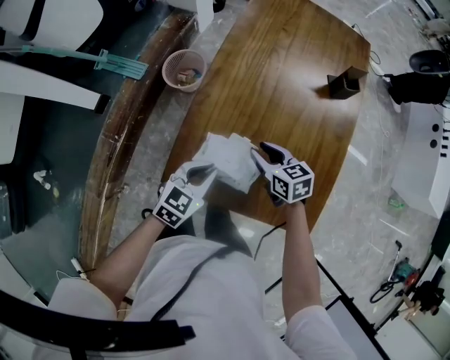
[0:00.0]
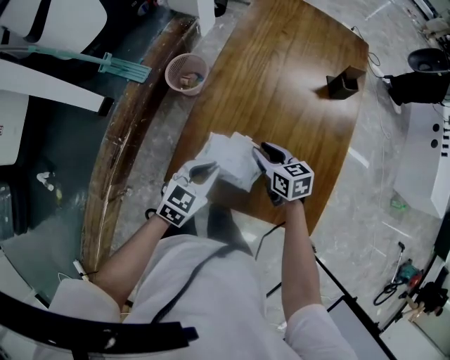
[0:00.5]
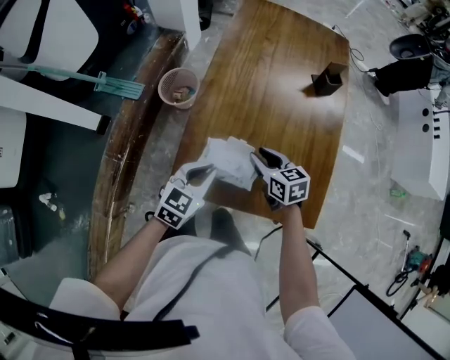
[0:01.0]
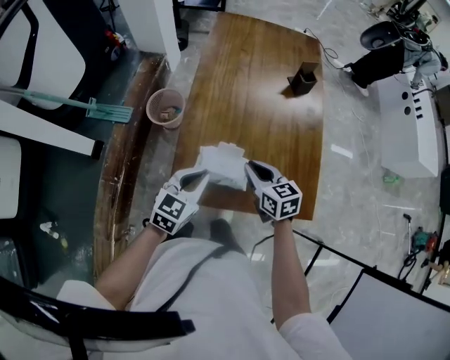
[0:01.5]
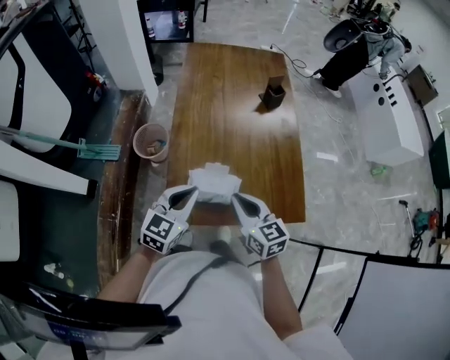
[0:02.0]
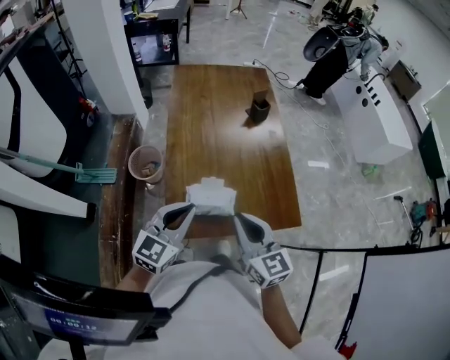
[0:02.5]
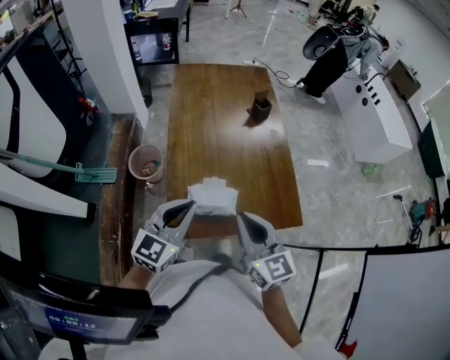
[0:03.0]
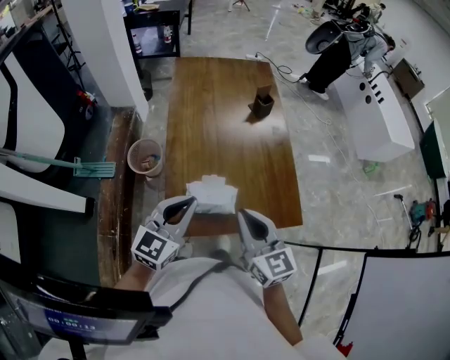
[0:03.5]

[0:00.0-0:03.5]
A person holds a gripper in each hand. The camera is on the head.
0:00.0 to 0:02.0: The right gripper is displaced upward and backward by about 20 cm, swivels some 30 degrees, and closes up. The left gripper shifts about 15 cm upward.
0:02.0 to 0:03.5: Both grippers move upward, about 10 cm.

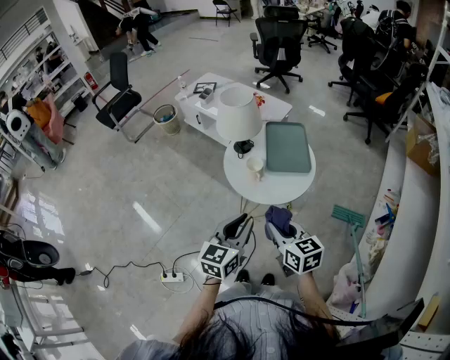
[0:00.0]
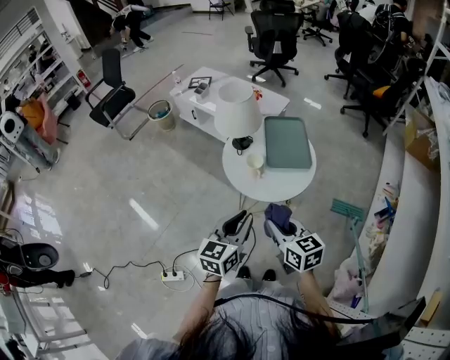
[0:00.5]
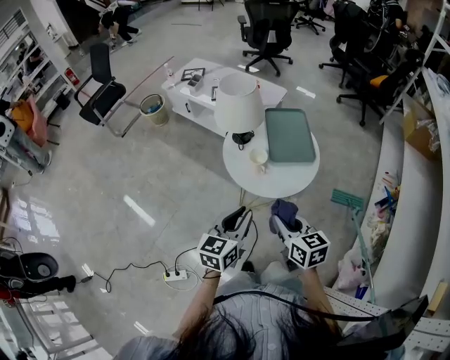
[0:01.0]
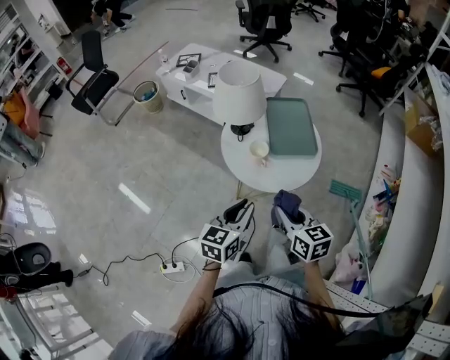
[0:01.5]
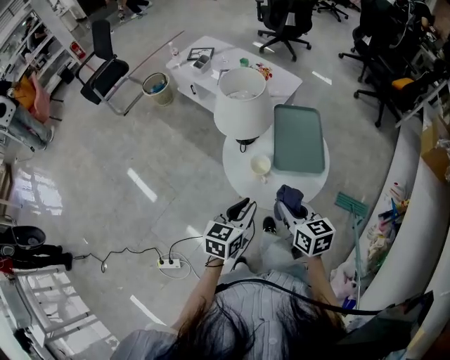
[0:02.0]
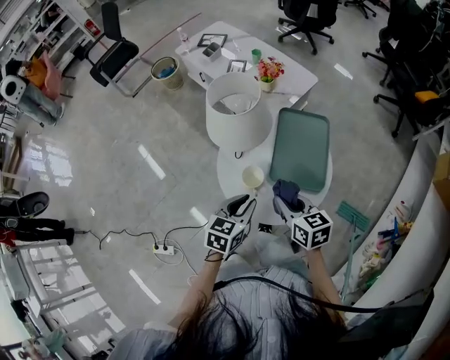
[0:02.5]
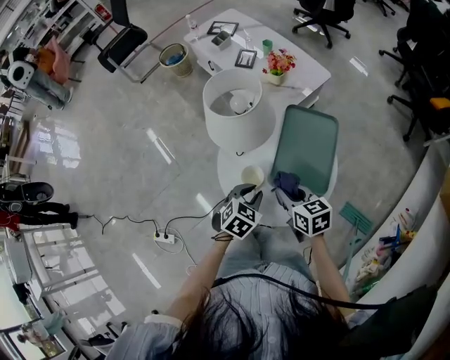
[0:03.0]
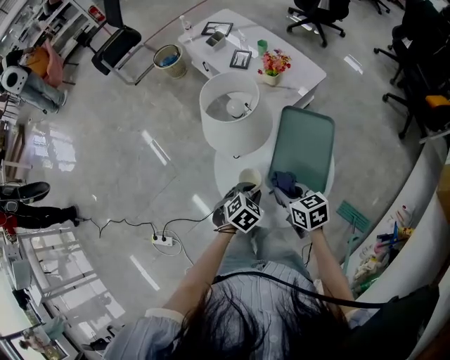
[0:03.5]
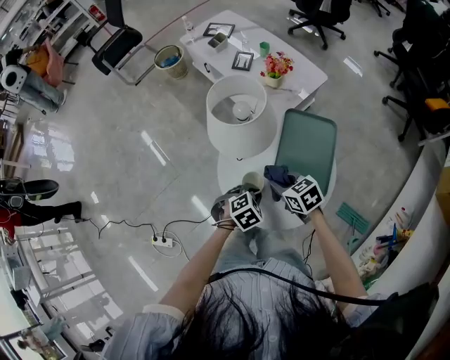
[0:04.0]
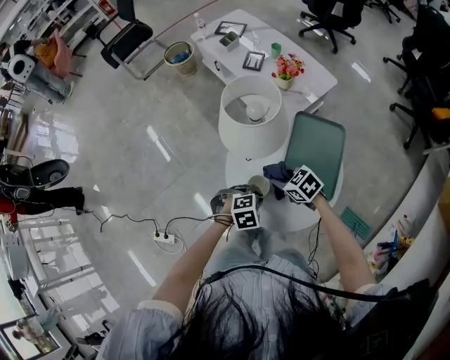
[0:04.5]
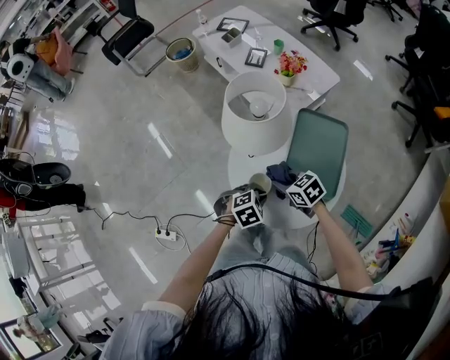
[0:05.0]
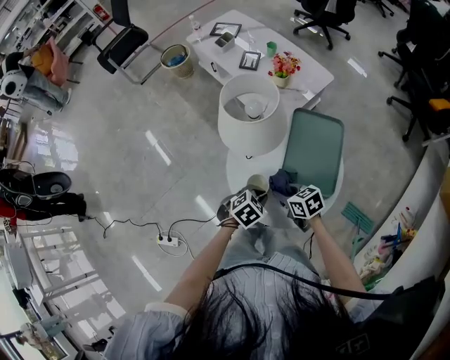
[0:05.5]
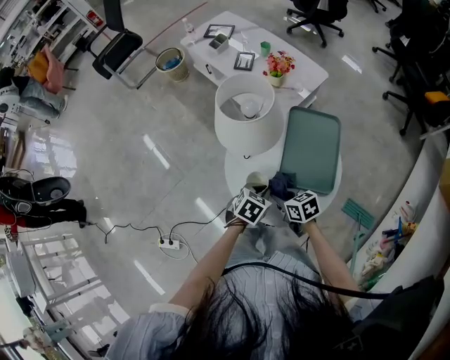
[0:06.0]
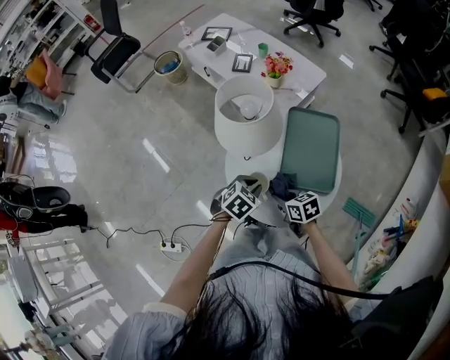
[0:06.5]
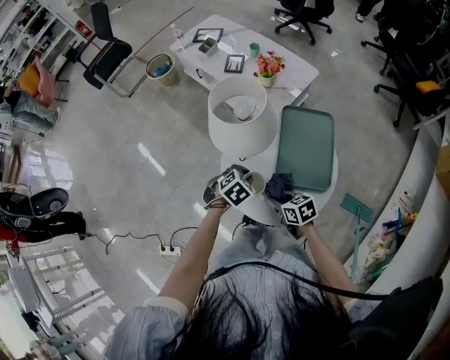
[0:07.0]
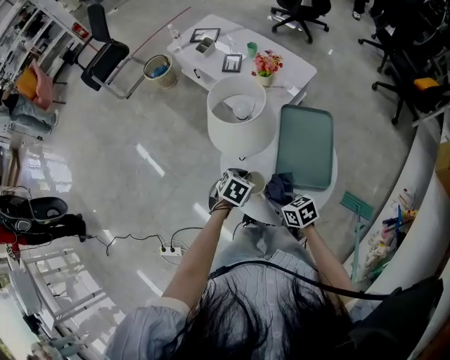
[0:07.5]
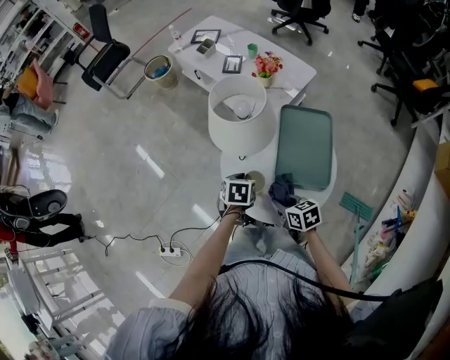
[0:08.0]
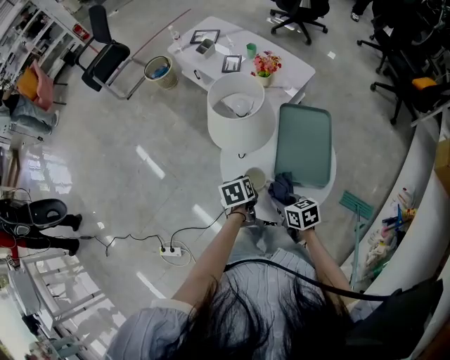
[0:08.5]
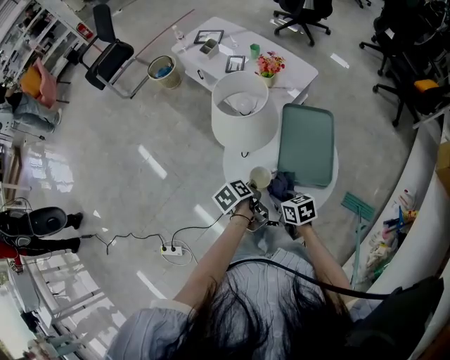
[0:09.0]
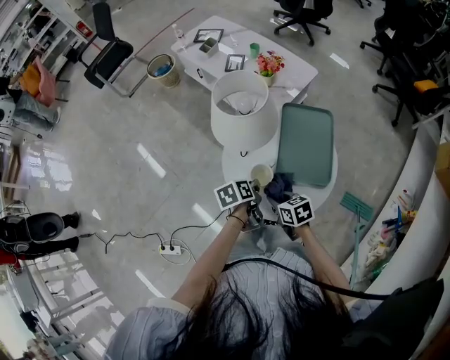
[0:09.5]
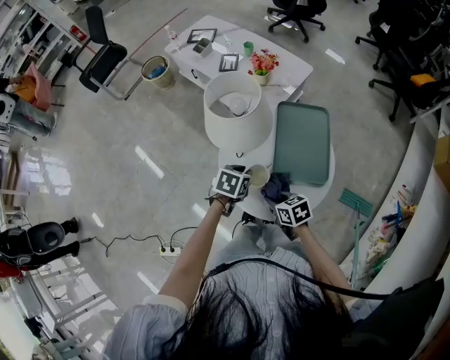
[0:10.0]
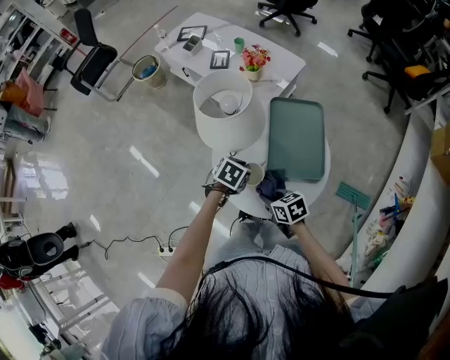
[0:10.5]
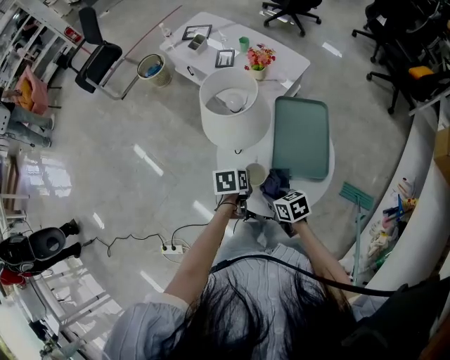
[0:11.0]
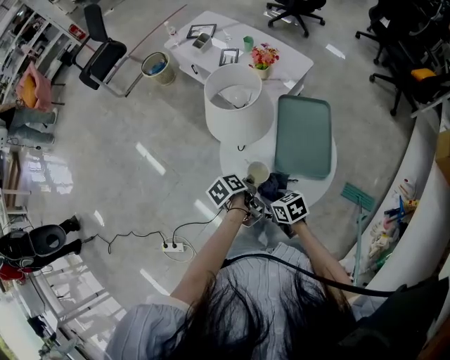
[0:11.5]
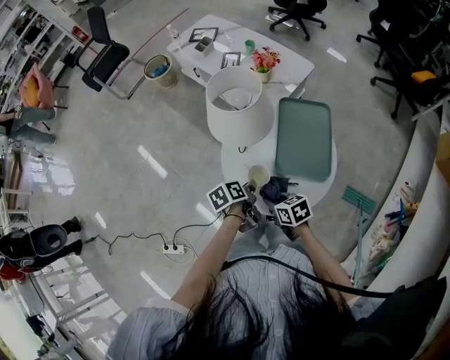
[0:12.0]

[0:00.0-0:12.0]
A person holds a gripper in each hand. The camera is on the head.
0:00.0 to 0:02.0: The right gripper heads forward, covering approximately 15 cm, while the left gripper shifts about 15 cm forward and downward.
0:02.0 to 0:04.0: The right gripper is displaced forward and downward by roughly 20 cm, and turns by about 40 degrees. The left gripper moves downward, forward and to the right, about 20 cm, and tilts its fingers some 40 degrees downward.
0:04.0 to 0:06.0: The left gripper swivels about 30 degrees; the right gripper ends up some 10 cm from where it was.
0:06.0 to 0:08.0: The left gripper travels to the left and forward by approximately 10 cm, and rotates roughly 20 degrees.
0:10.0 to 0:12.0: The left gripper goes some 5 cm backward, and rotates around the line of its fingers by approximately 60 degrees, counterclockwise from behind.

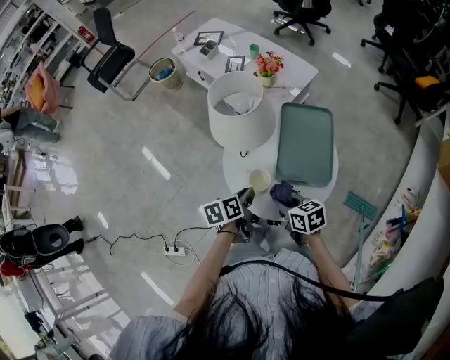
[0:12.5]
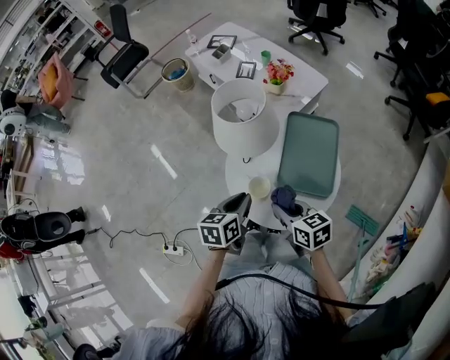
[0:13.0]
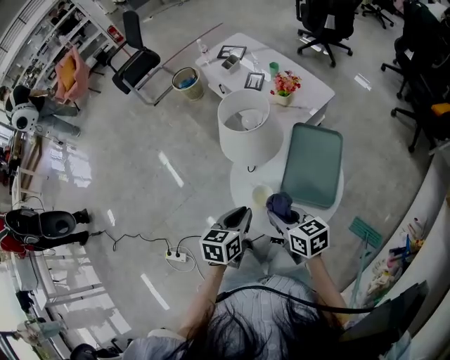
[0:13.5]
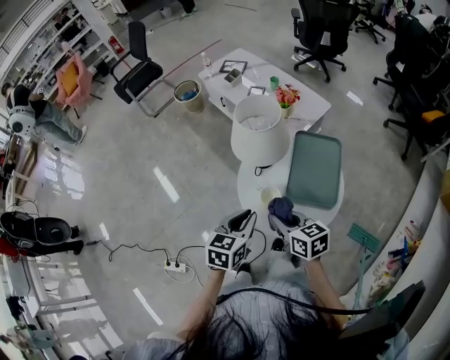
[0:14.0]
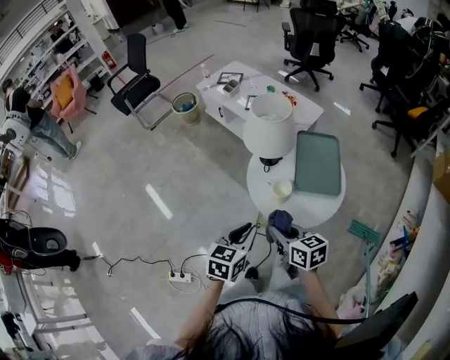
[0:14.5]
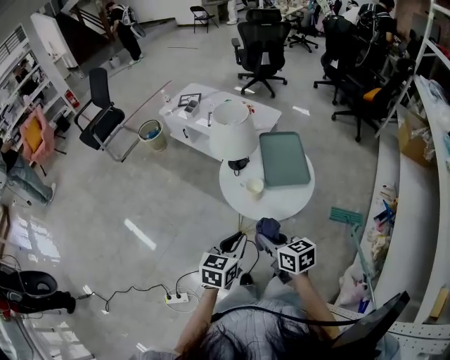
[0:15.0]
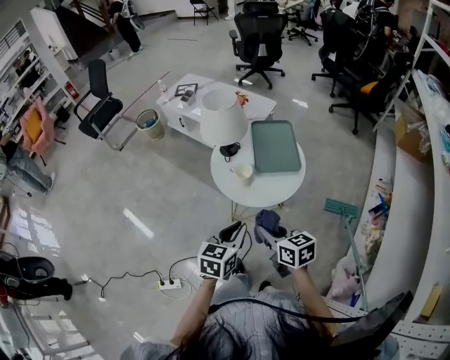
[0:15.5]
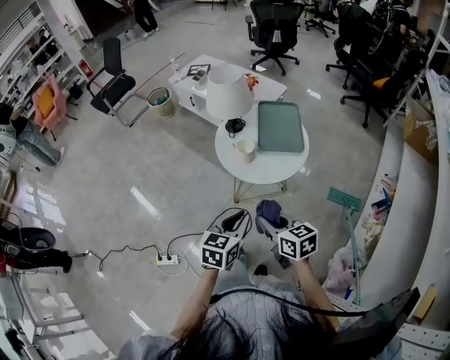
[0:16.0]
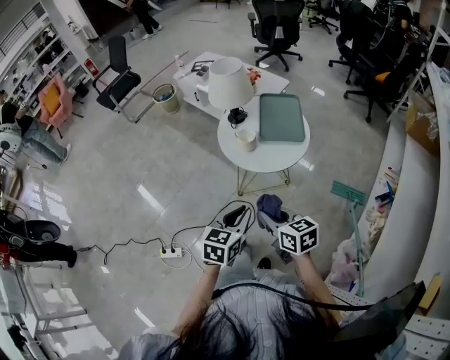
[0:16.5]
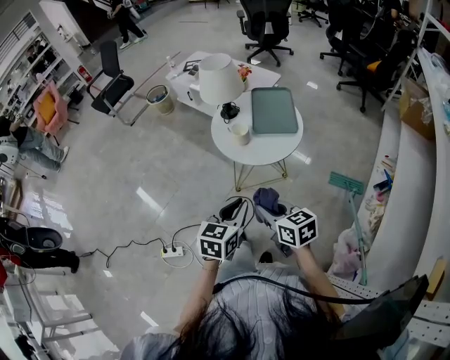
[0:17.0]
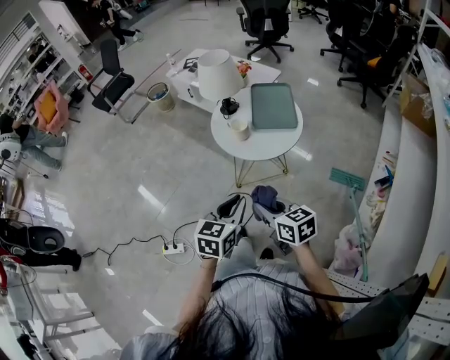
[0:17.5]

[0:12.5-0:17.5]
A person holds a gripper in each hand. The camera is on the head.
0:12.5 to 0:15.0: The two grippers go roughly 20 cm backward, upward and to the left. The left gripper rotates around the line of its fingers by roughly 50 degrees, clockwise from behind; the right gripper rotates about 20 degrees.
0:15.0 to 0:17.5: The right gripper goes approximately 15 cm backward, while the left gripper heads backward and to the right, covering approximately 15 cm.

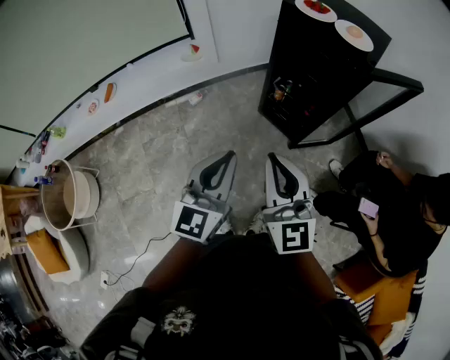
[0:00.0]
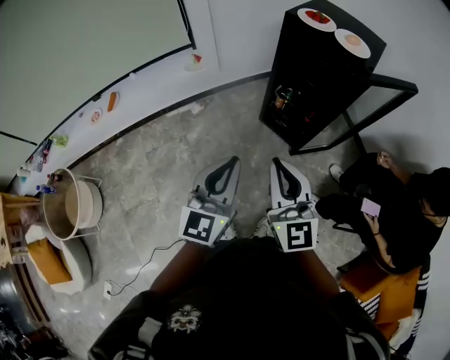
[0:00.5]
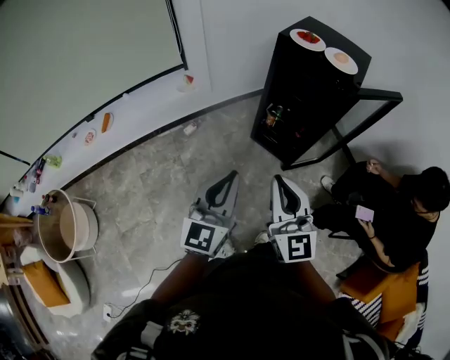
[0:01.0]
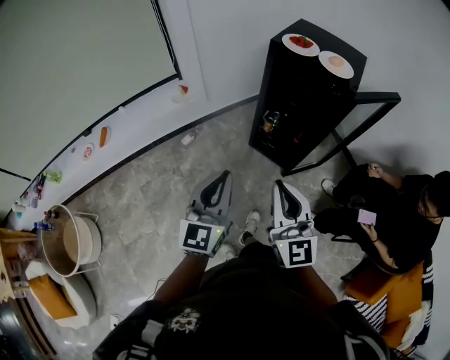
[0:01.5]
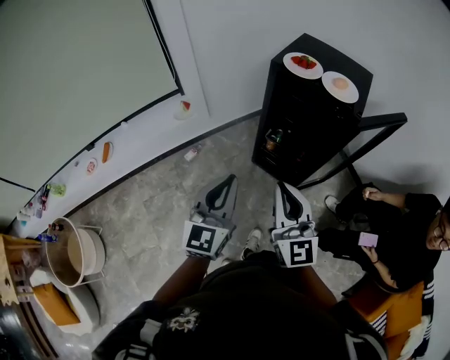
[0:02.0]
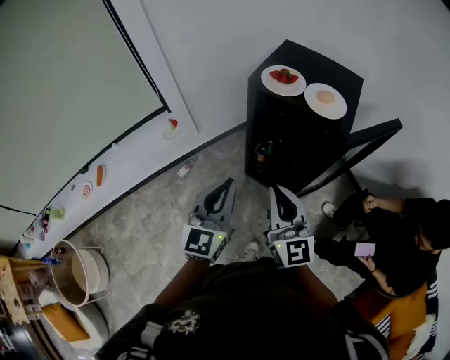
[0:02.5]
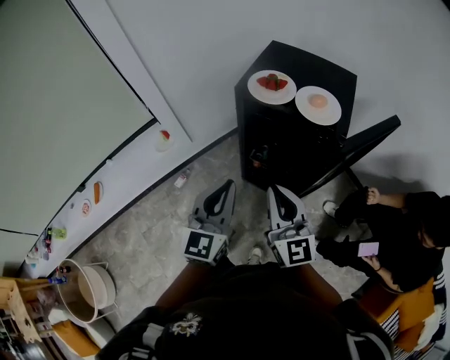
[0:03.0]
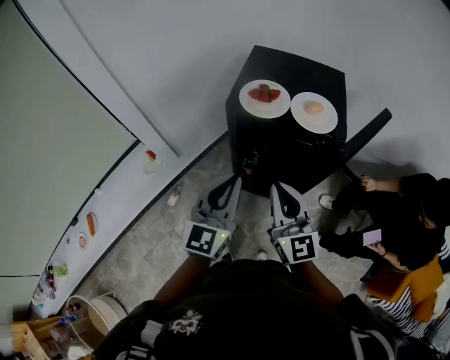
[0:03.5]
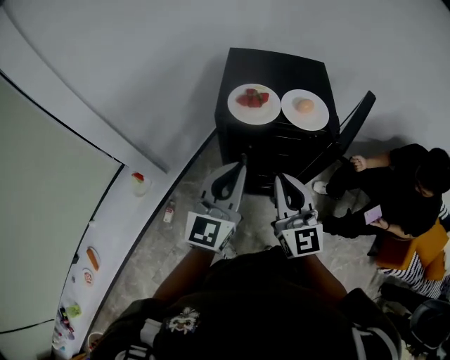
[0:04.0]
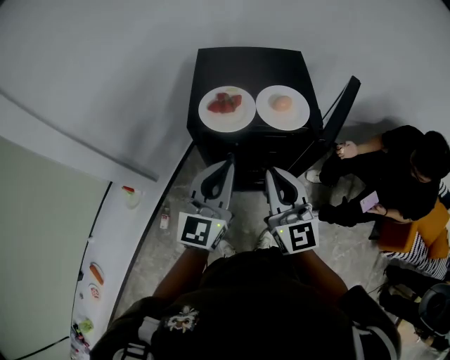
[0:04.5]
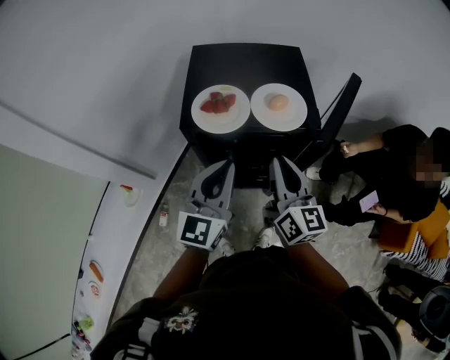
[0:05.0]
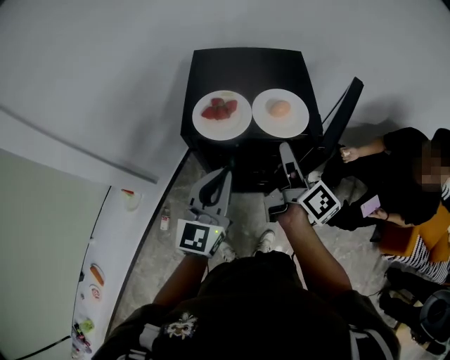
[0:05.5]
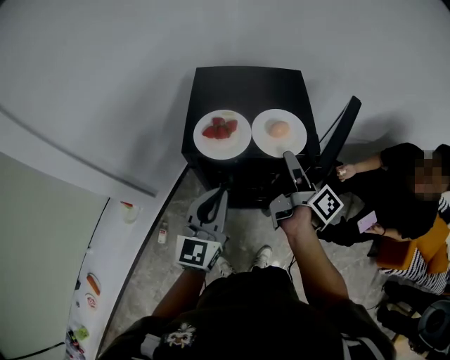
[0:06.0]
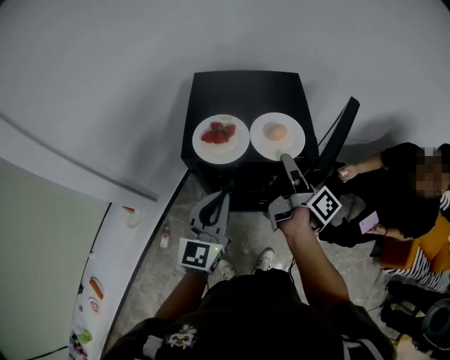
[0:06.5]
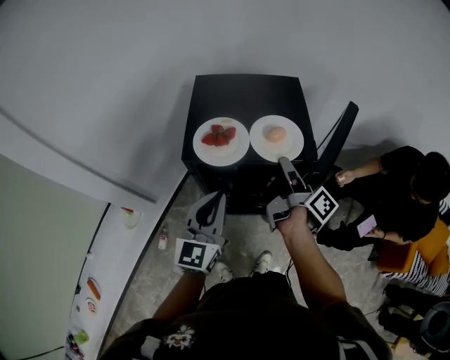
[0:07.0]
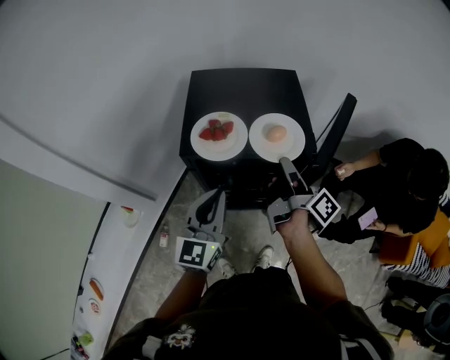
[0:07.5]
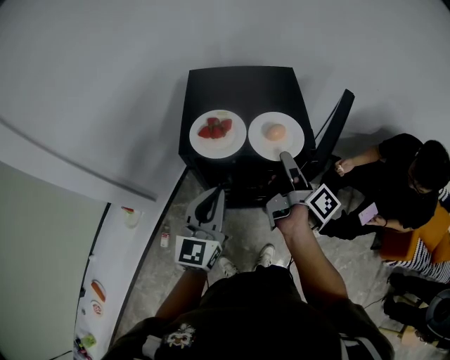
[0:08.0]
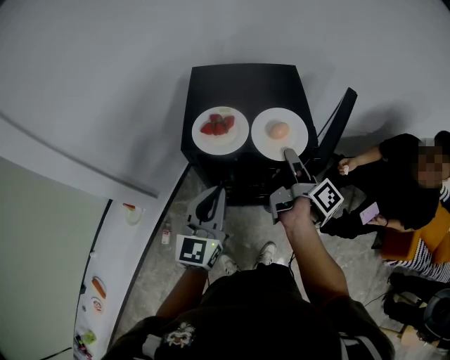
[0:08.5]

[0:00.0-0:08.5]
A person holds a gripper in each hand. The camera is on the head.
0:00.0 to 0:02.0: The two grippers go about 10 cm forward.
0:02.0 to 0:04.0: The right gripper changes place by roughly 25 cm, and changes its angle by roughly 30 degrees, while the left gripper changes place by about 30 cm, and rotates some 30 degrees.
0:04.0 to 0:06.5: The left gripper heads forward, covering about 5 cm. The right gripper moves forward and to the right, about 20 cm, and twists roughly 90 degrees clockwise, seen from behind.
0:06.5 to 0:08.5: The grippers move only a little.
